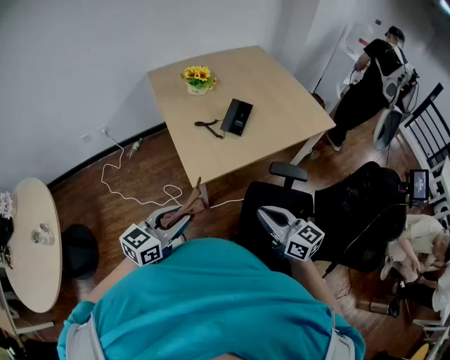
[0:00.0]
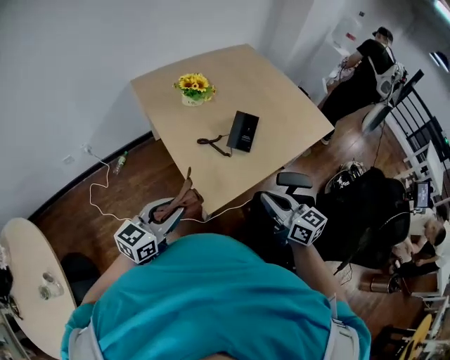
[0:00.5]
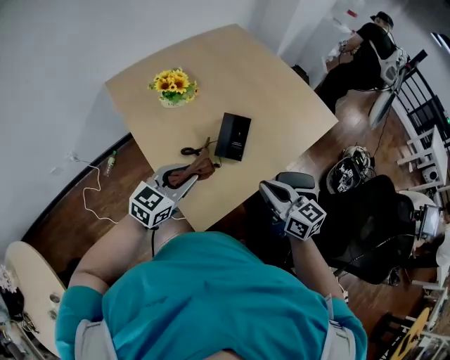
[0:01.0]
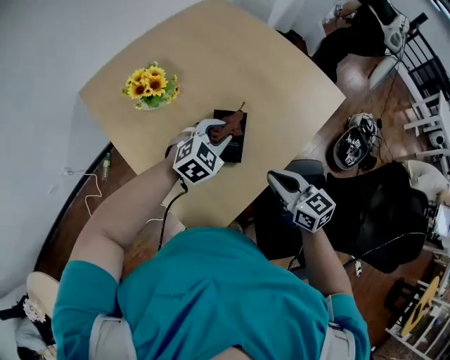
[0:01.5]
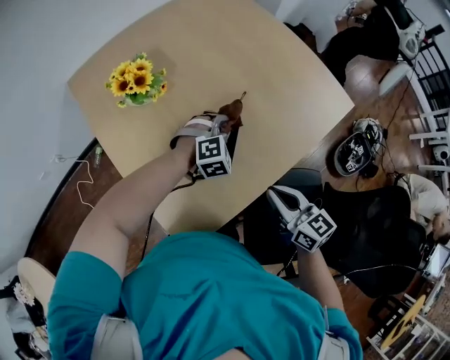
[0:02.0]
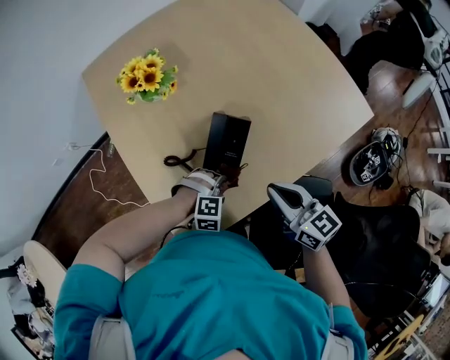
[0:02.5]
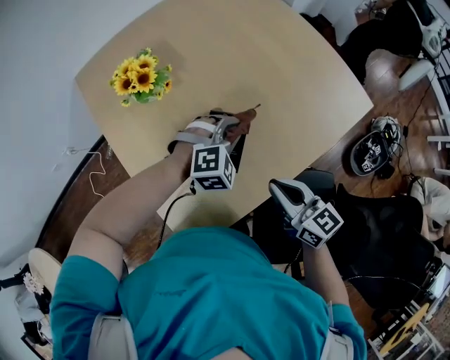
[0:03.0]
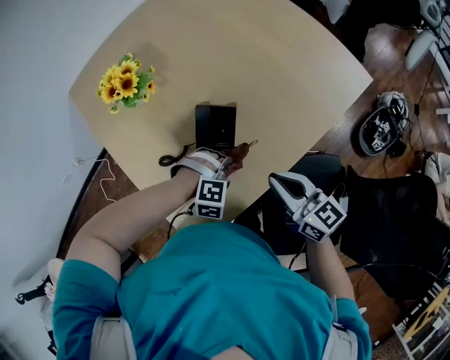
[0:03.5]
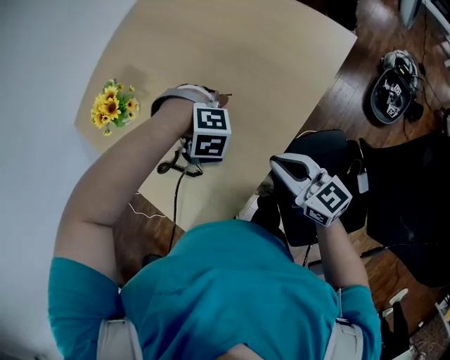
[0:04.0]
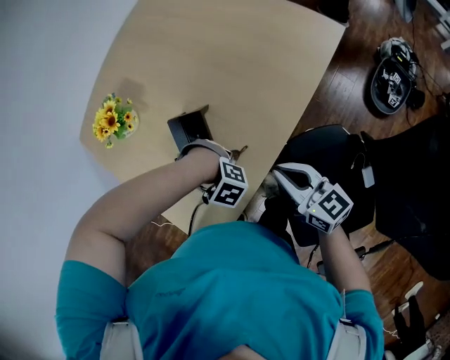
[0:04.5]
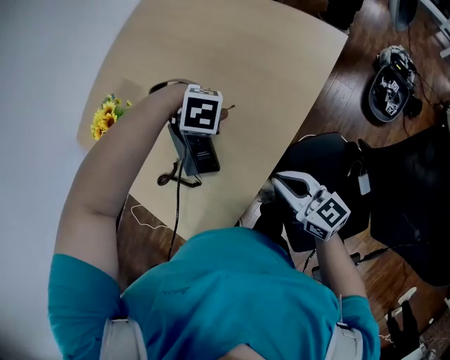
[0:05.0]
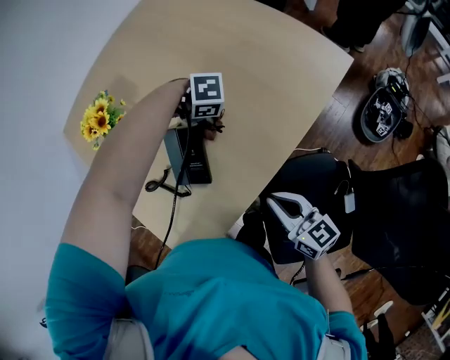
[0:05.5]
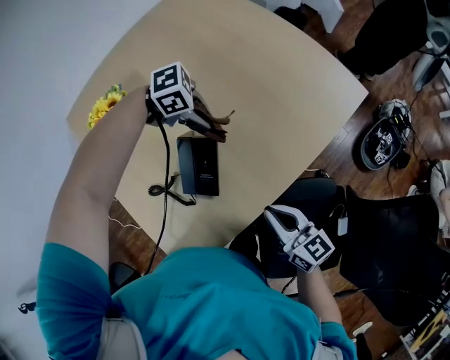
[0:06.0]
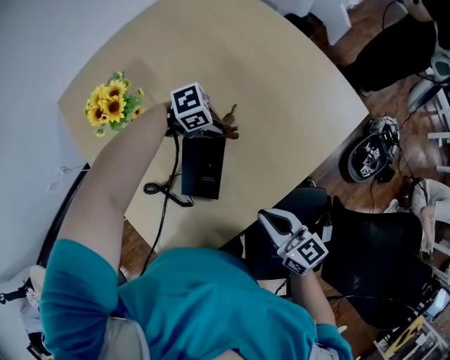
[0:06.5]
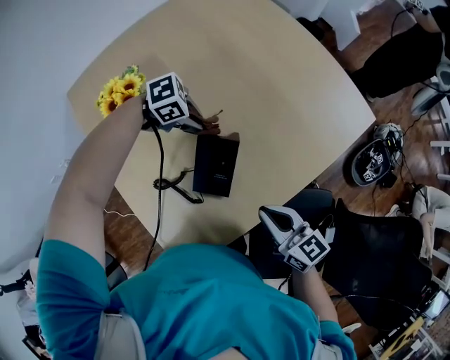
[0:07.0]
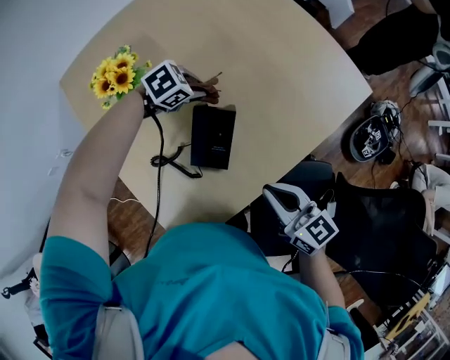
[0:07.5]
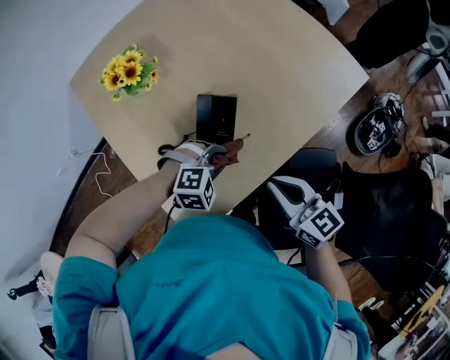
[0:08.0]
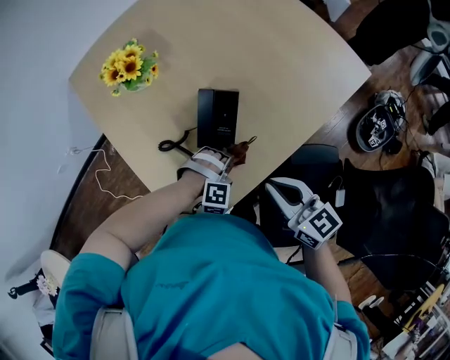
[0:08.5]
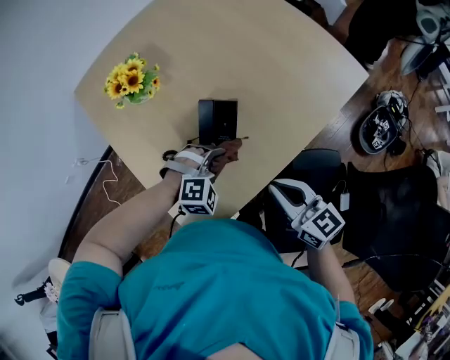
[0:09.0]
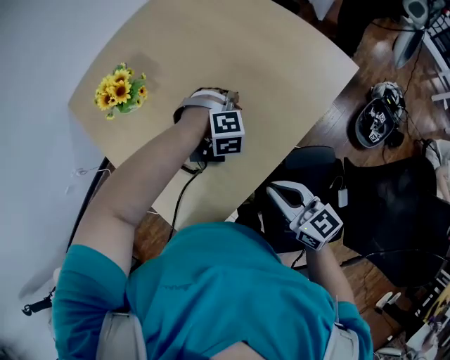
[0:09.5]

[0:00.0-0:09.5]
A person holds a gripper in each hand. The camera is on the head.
0:00.0 to 0:02.0: The right gripper is displaced forward by about 40 cm, and swivels approximately 20 degrees. The left gripper moves forward, some 60 cm, and twists about 70 degrees clockwise, seen from behind.
0:02.0 to 0:04.0: The left gripper moves up and down over approximately 15 cm, changing direction 3 times, and changes its angle by approximately 50 degrees. The right gripper moves some 10 cm.
0:04.0 to 0:05.5: The right gripper changes place by about 5 cm. The left gripper goes up and down, approximately 10 cm each way, reversing 2 times, and swivels about 40 degrees.
0:05.5 to 0:07.5: The right gripper ends up about 10 cm from where it was. The left gripper goes up and down, some 5 cm each way, reversing 2 times, and changes its angle by about 50 degrees.
0:07.5 to 0:09.5: The right gripper changes place by about 5 cm. Meanwhile the left gripper moves about 10 cm downward and comes back, and turns by roughly 60 degrees.

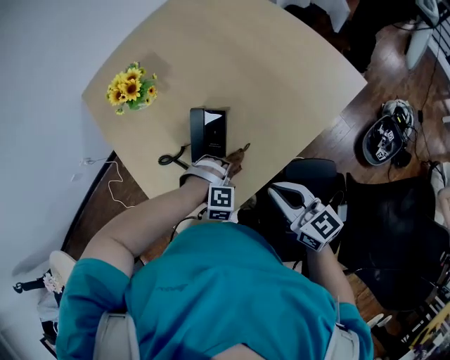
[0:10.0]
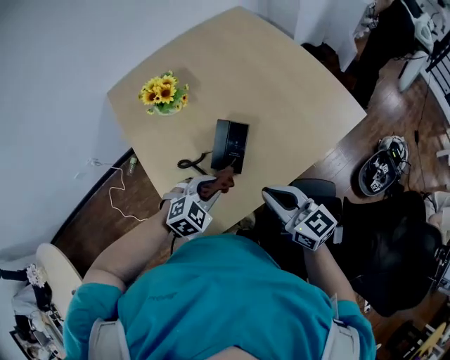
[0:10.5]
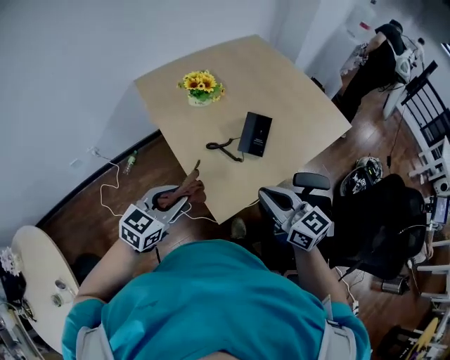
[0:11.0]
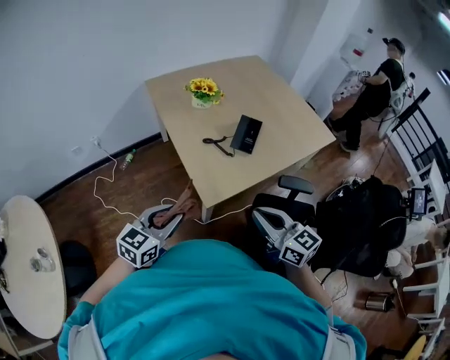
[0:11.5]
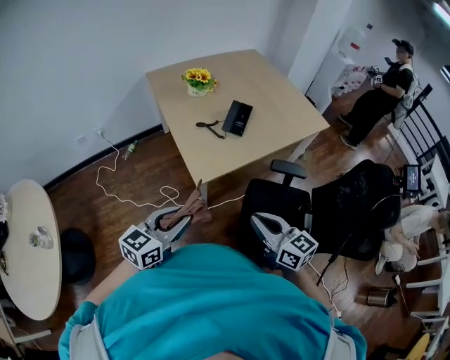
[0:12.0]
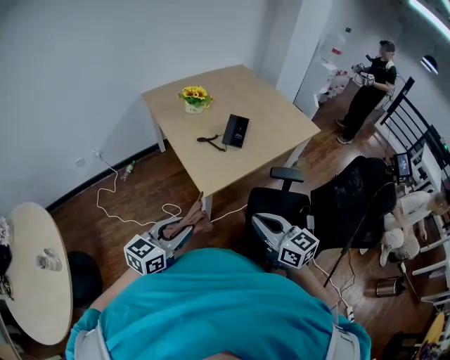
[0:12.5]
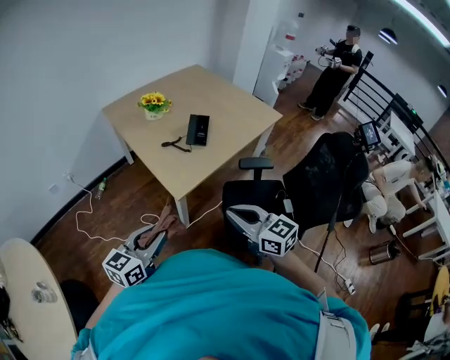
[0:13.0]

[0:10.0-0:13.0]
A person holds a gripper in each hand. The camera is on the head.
0:10.0 to 0:11.5: The right gripper shifts about 40 cm backward, to the left and upward, while the left gripper goes roughly 50 cm to the left, backward and upward, and rolls counterclockwise, seen from behind, by approximately 80 degrees.
0:11.5 to 0:13.0: Both grippers travel together backward, roughly 15 cm.

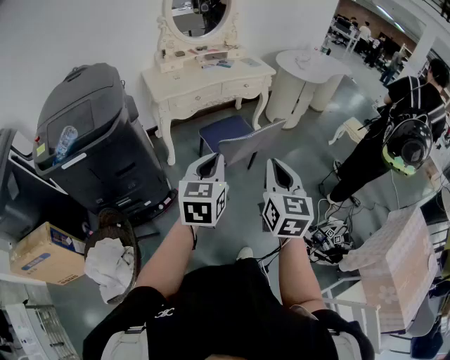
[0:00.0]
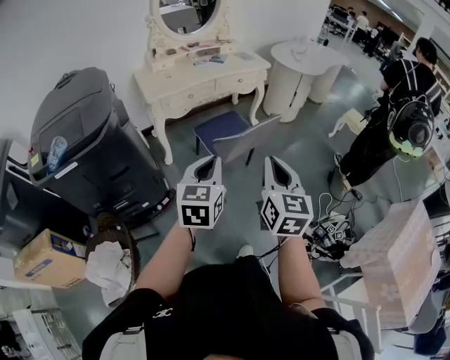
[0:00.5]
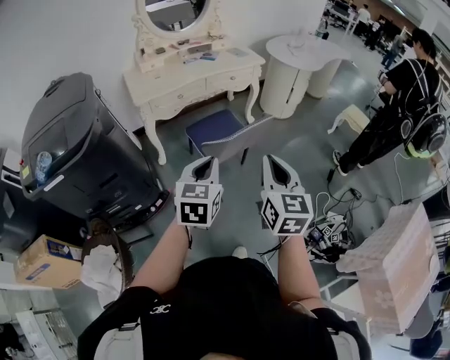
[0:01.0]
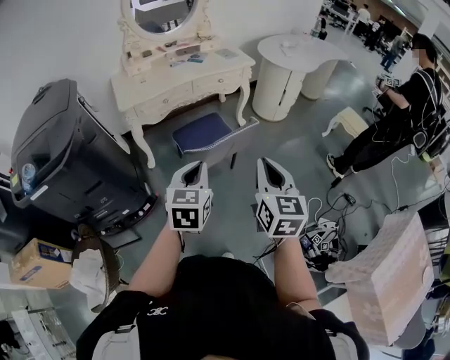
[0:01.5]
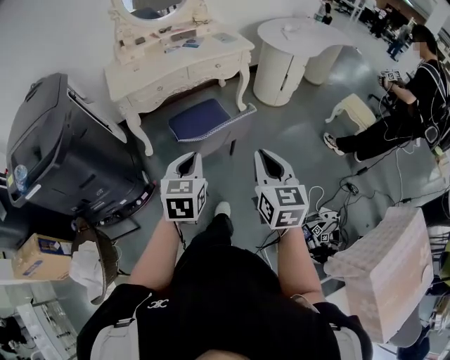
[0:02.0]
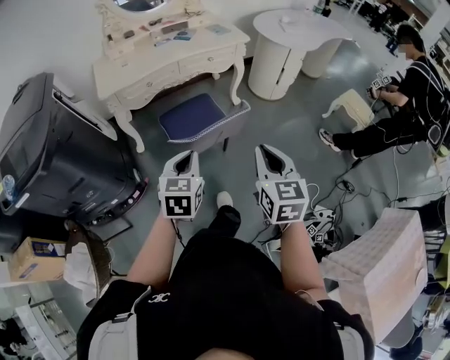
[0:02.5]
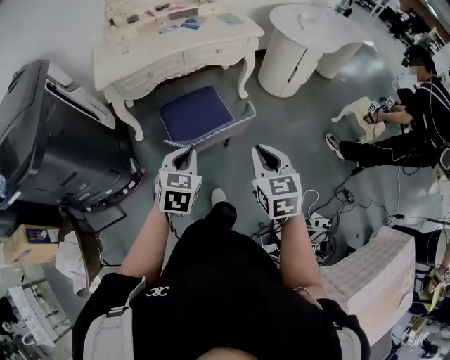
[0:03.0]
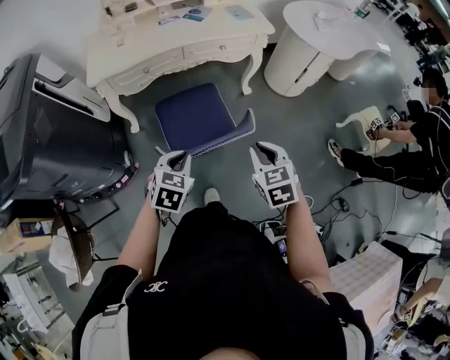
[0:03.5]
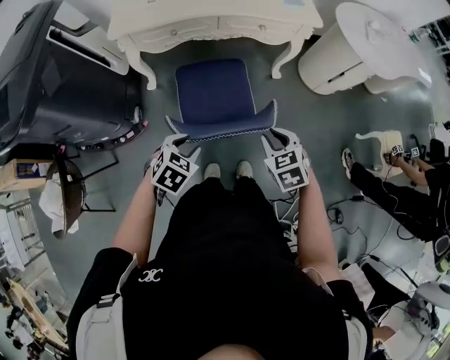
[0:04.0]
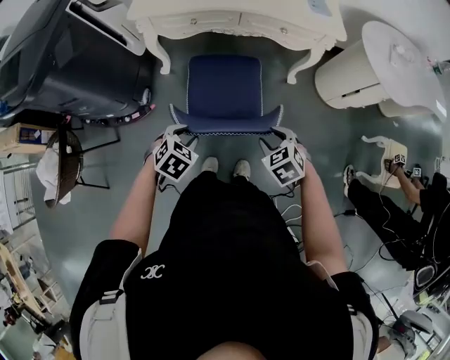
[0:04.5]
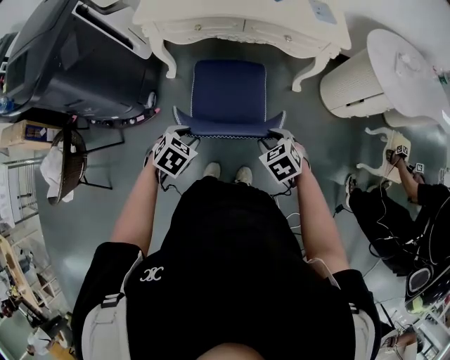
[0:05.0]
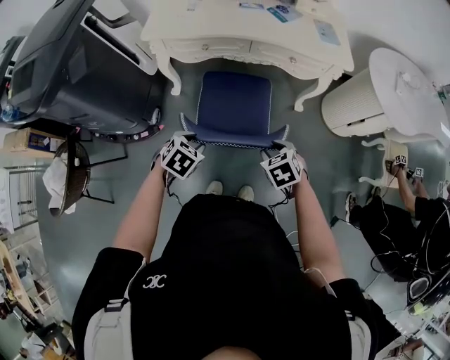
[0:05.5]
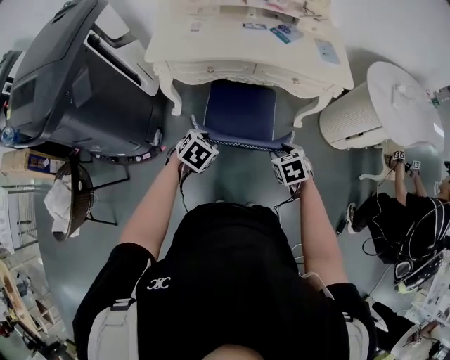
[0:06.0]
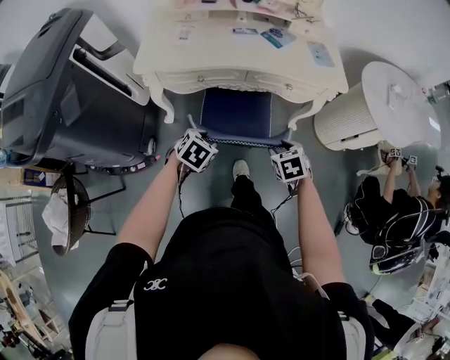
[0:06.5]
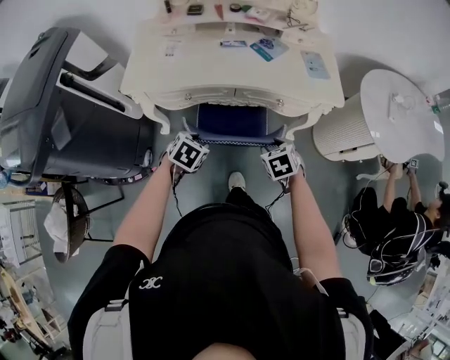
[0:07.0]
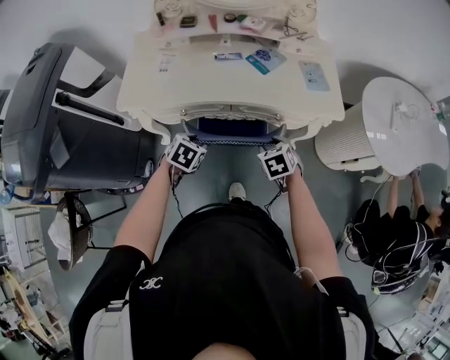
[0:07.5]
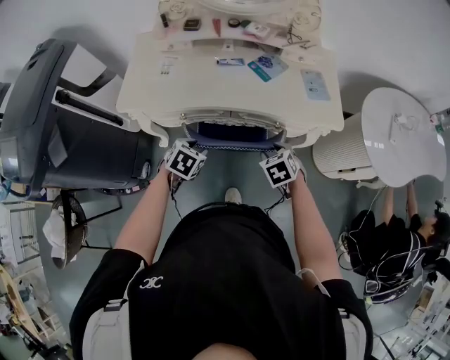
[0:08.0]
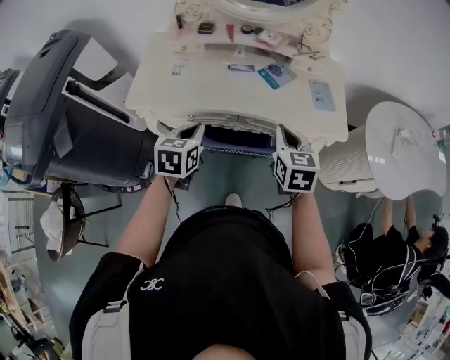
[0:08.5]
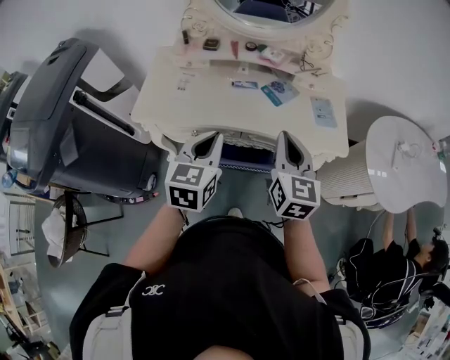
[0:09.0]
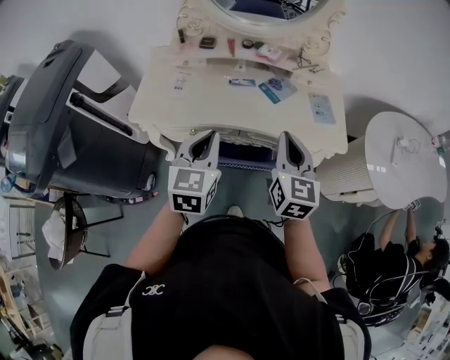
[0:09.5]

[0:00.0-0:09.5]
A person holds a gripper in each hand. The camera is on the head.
0:00.0 to 0:02.0: The left gripper heads forward, to the right and downward, covering roughly 20 cm. Meanwhile the right gripper shifts roughly 25 cm to the right and forward.
0:02.0 to 0:04.0: The right gripper travels forward and downward by approximately 35 cm, and tilts its fingers approximately 40 degrees downward. Meanwhile the left gripper is displaced downward and forward by approximately 25 cm, tilts its fingers some 30 degrees downward, and opens up.
0:04.0 to 0:05.5: The left gripper is displaced forward by about 10 cm. Meanwhile the right gripper travels forward and downward by some 10 cm.
0:05.5 to 0:07.5: The two grippers go some 30 cm forward.
0:07.5 to 0:09.5: The grippers both shift upward by approximately 25 cm. The left gripper angles its fingers upward, by some 40 degrees, and closes up, while the right gripper tilts its fingers about 50 degrees upward, and closes.

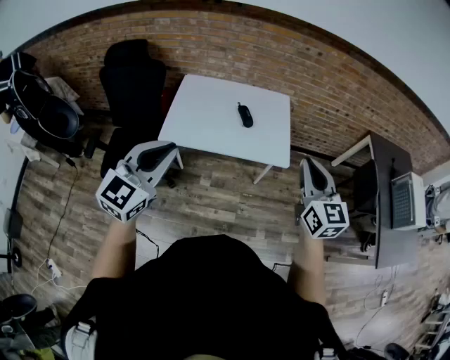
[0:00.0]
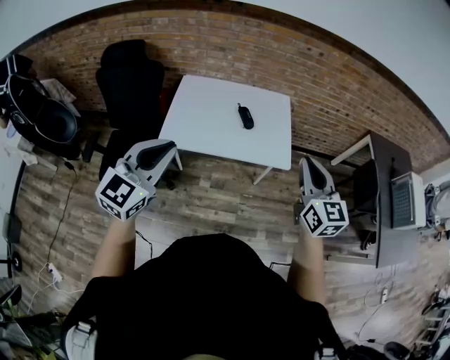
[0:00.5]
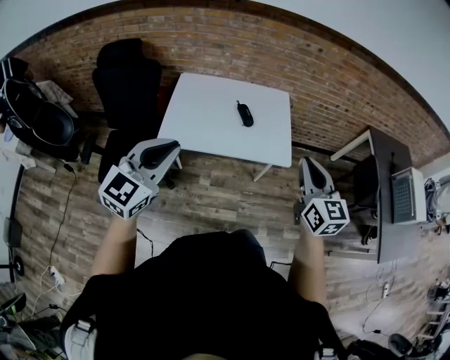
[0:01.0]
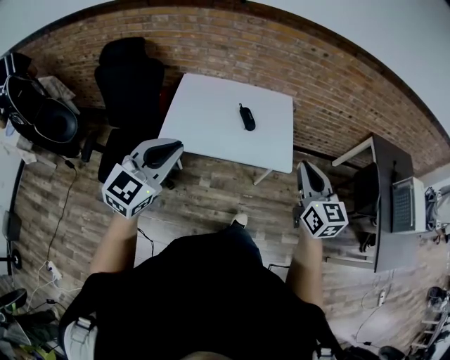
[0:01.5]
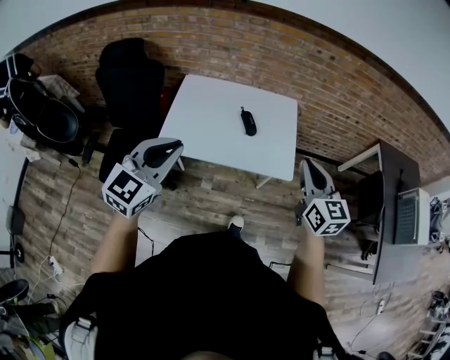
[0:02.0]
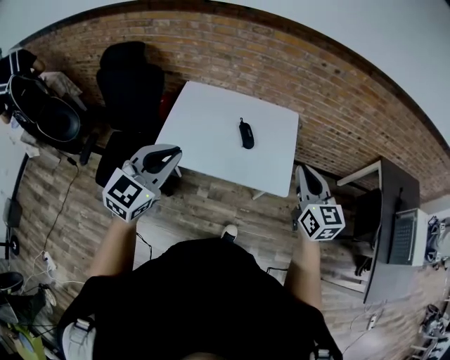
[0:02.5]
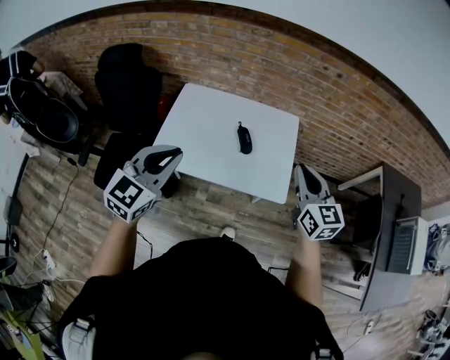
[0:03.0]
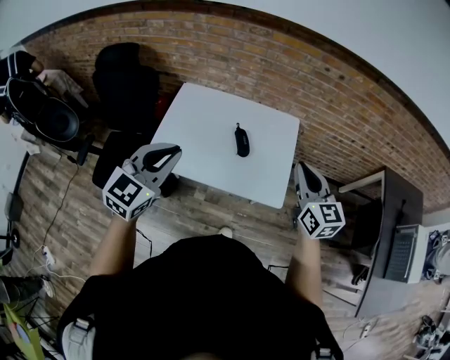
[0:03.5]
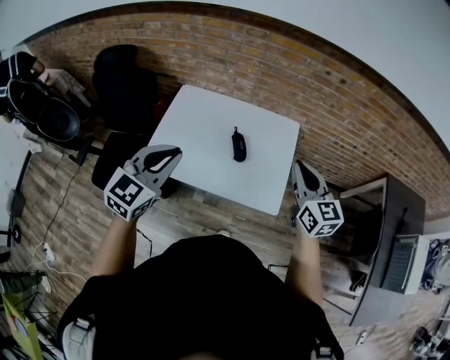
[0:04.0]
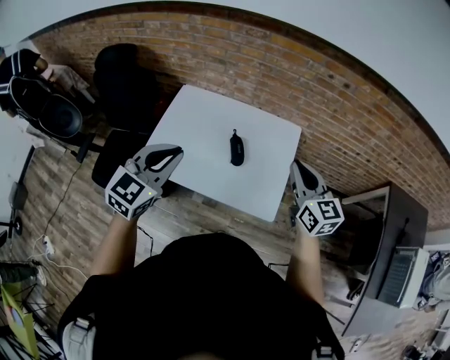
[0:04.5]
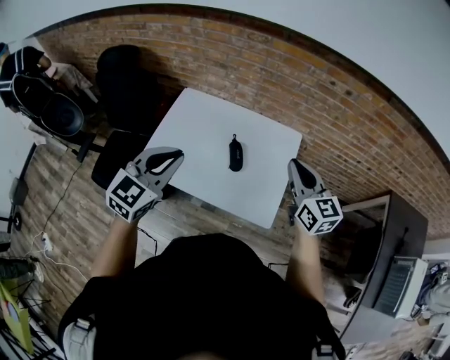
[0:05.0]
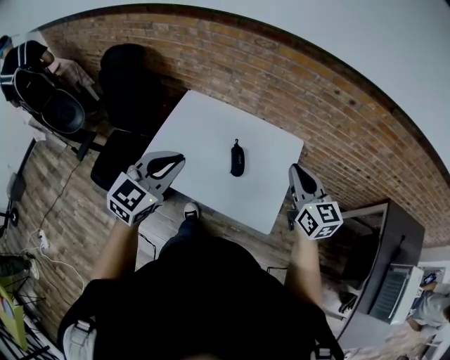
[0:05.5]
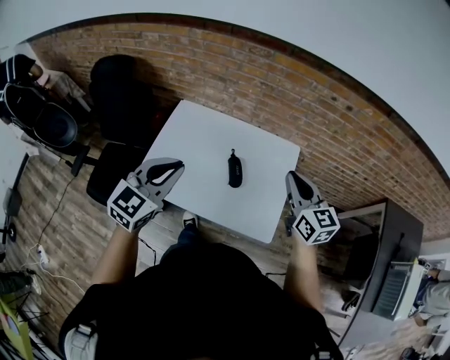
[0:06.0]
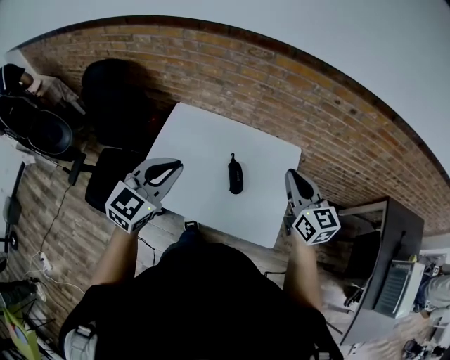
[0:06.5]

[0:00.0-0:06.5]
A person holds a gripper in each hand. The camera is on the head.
0:00.0 to 0:02.0: The two grippers go some 15 cm forward.
0:02.0 to 0:04.5: The left gripper shifts approximately 20 cm forward and to the right; the right gripper moves forward, about 25 cm.
0:04.5 to 0:06.5: The two grippers go about 10 cm forward.
